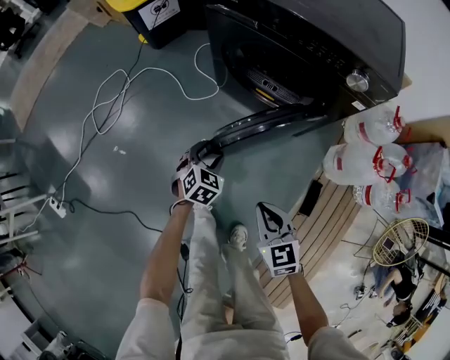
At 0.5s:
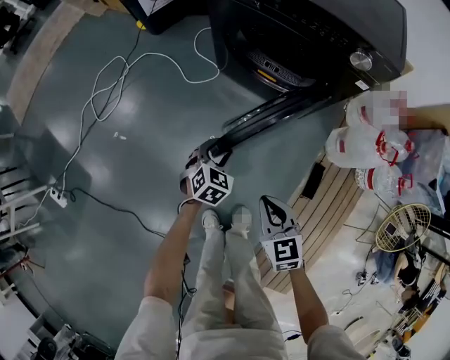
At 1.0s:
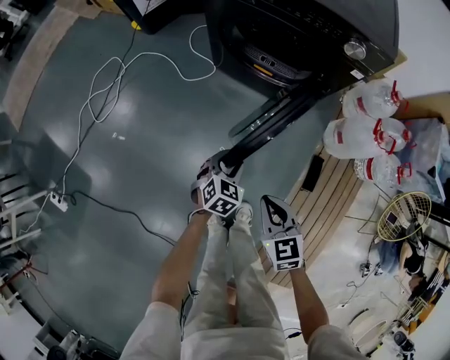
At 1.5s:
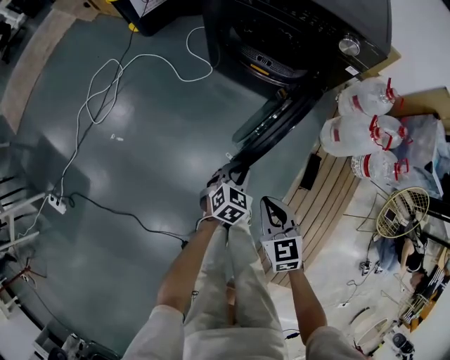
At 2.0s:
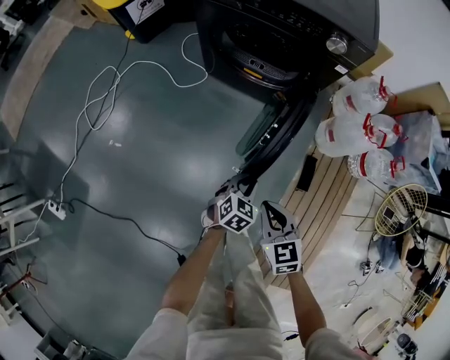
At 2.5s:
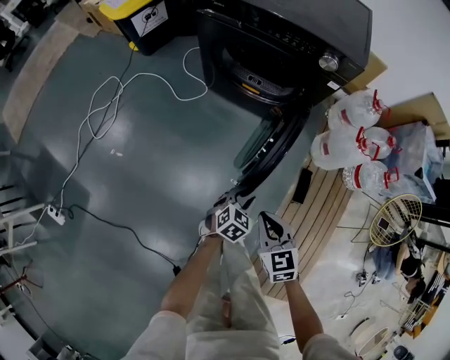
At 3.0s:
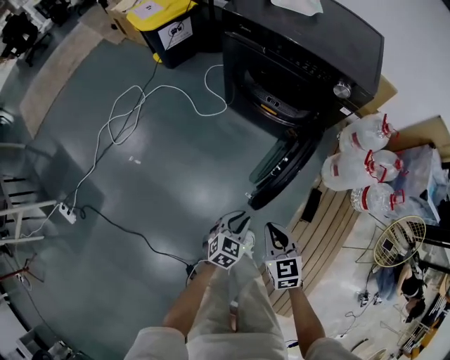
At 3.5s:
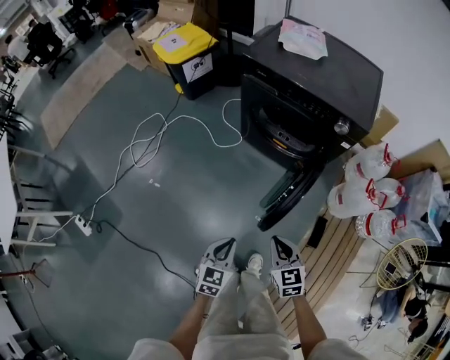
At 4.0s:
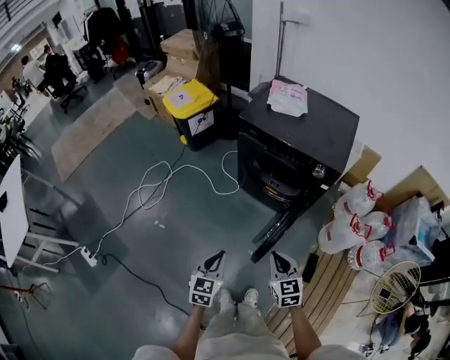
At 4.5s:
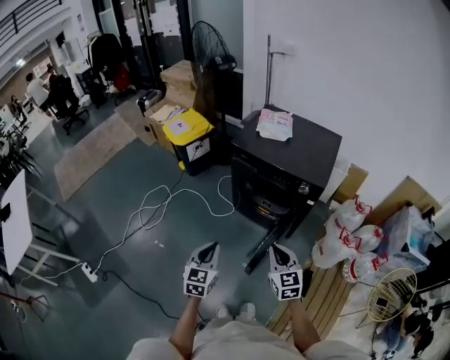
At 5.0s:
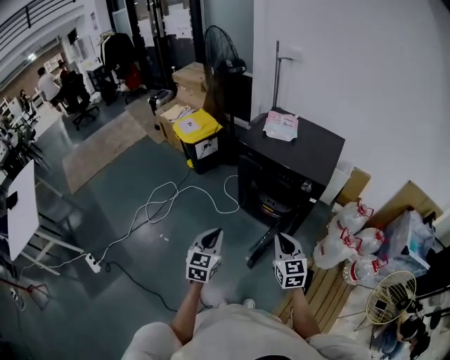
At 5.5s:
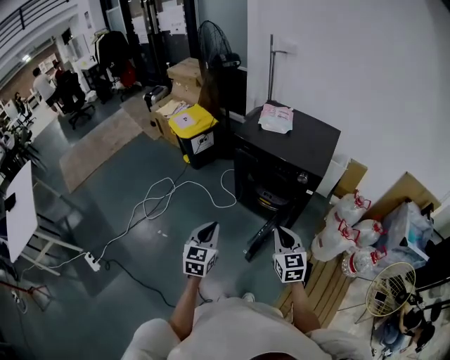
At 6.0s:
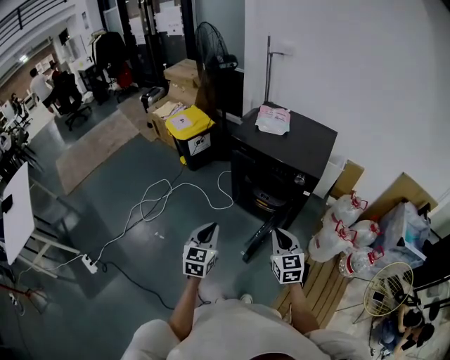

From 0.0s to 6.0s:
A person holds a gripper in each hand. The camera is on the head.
From 0.0s to 2.0s: The right gripper moves backward, approximately 10 cm; the left gripper is displaced backward and to the right by approximately 25 cm, and closes up.
From 2.0s to 4.0s: The right gripper travels upward by about 25 cm. The left gripper is displaced upward and to the left by roughly 40 cm, and changes its angle by approximately 30 degrees.
From 4.0s to 6.0s: The two grippers go some 15 cm upward.

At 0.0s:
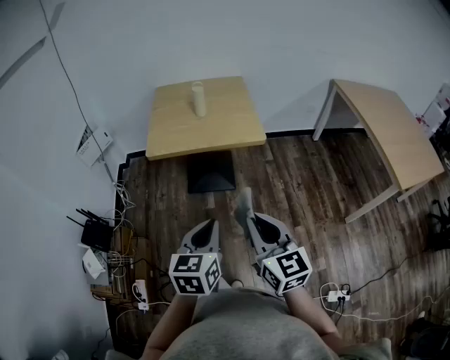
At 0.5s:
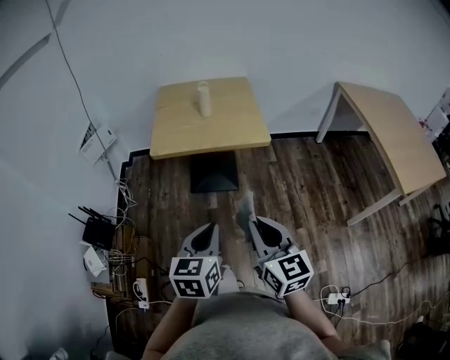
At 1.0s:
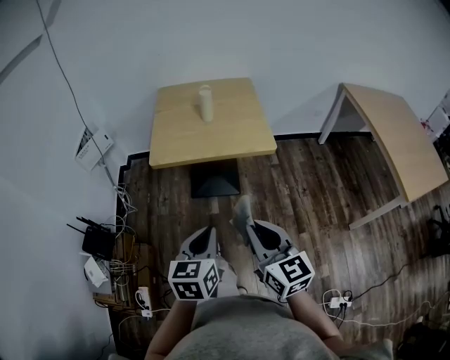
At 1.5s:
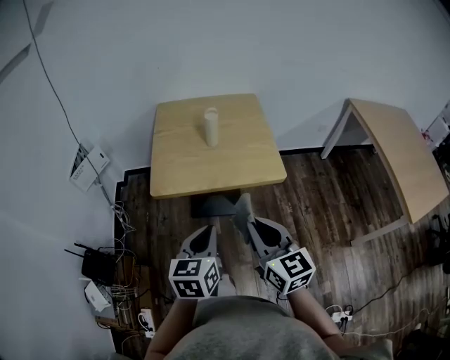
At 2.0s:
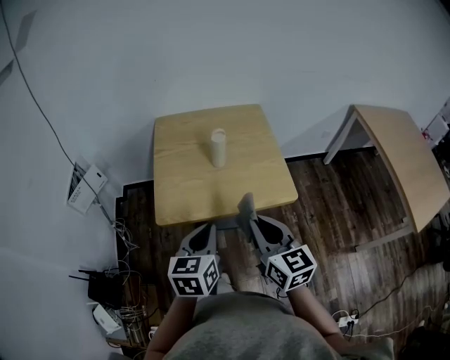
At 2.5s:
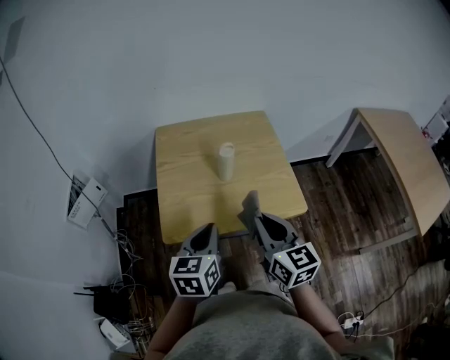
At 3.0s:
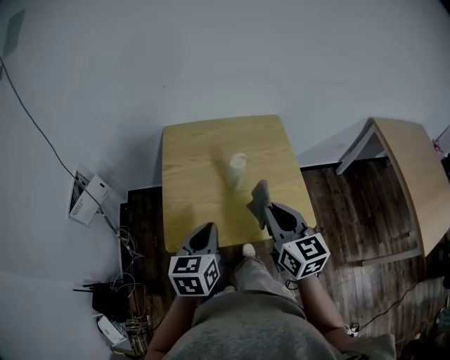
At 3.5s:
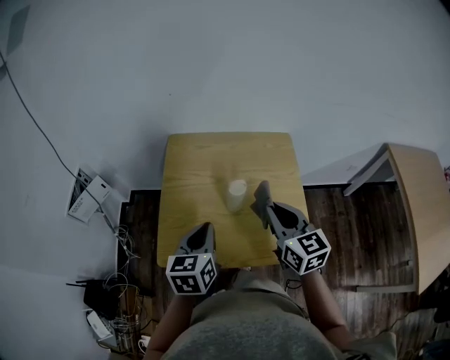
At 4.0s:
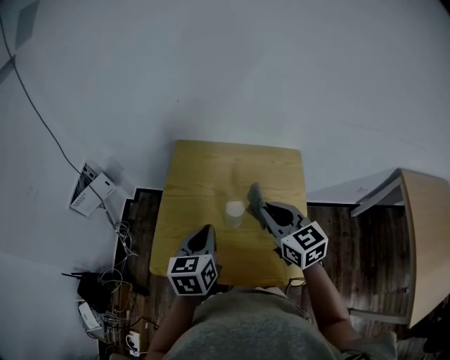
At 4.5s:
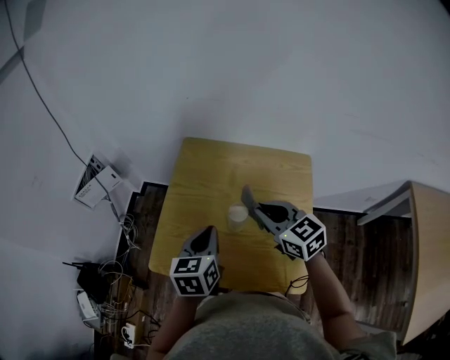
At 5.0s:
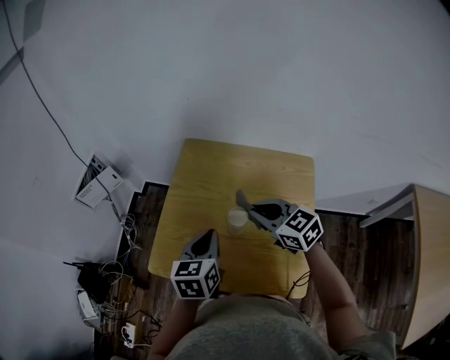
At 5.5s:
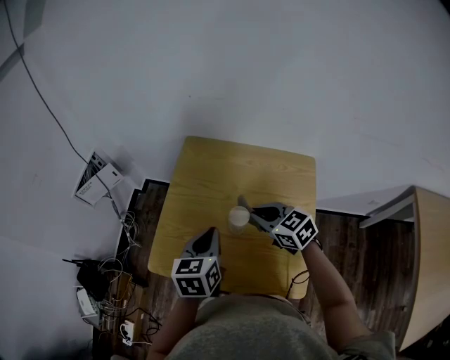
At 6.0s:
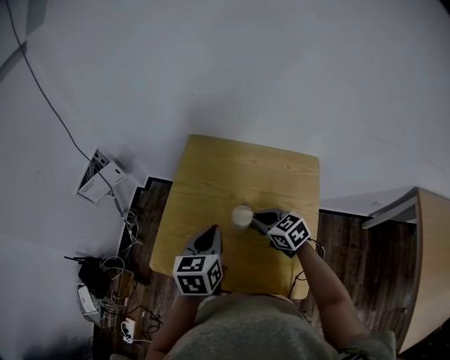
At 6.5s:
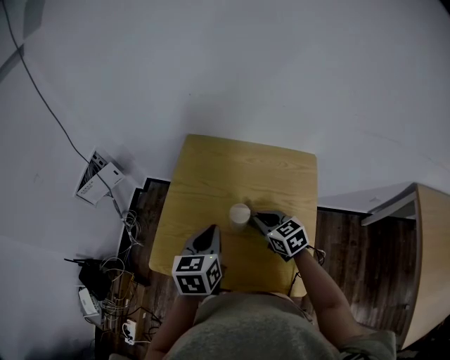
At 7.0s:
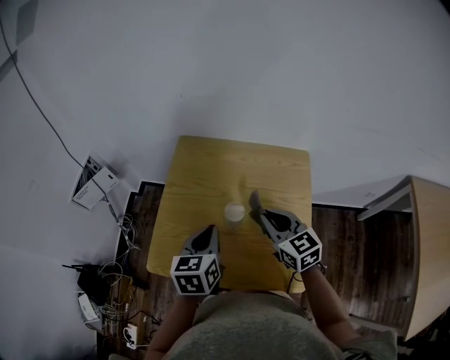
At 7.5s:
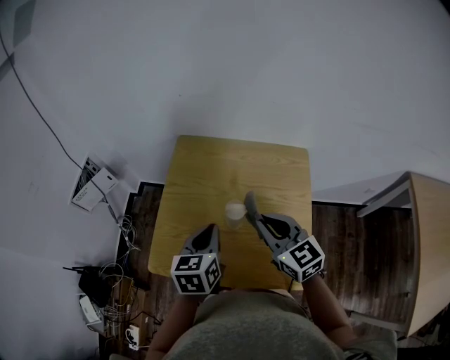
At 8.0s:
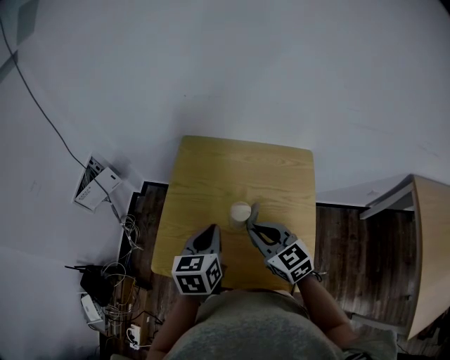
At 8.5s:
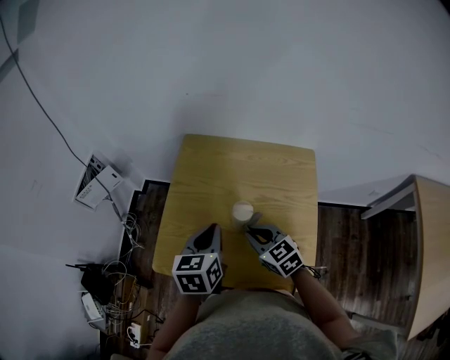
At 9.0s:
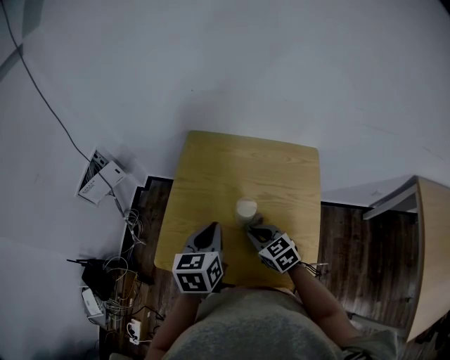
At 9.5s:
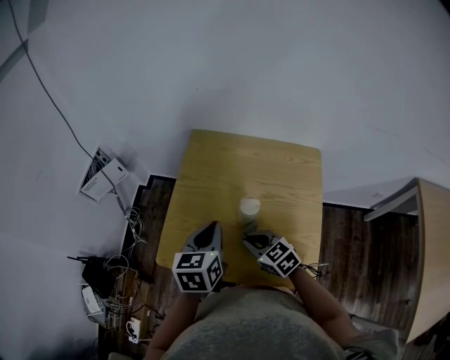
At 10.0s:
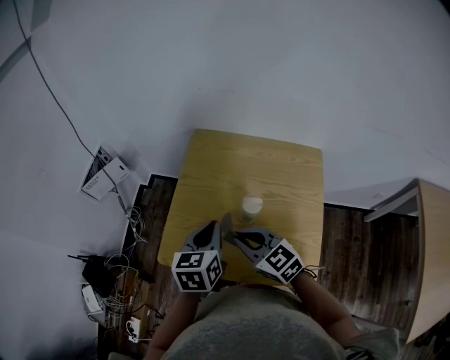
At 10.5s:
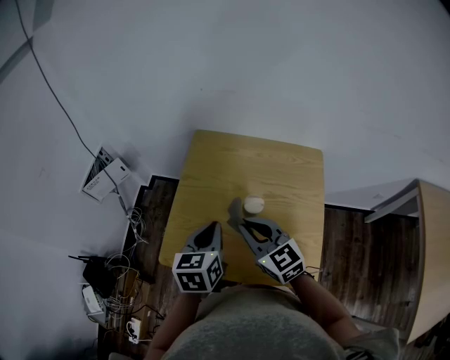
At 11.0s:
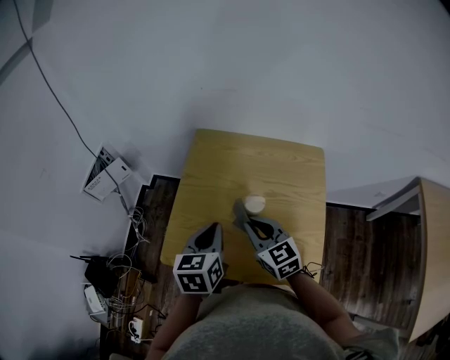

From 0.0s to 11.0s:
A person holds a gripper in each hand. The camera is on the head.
From 0.0s to 2.0s: Both grippers travel together forward, roughly 30 cm.
From 2.0s to 3.5s: The grippers both shift forward by roughly 25 cm.
From 3.5s to 5.5s: The right gripper moves roughly 15 cm, and changes its angle by approximately 40 degrees. Meanwhile the left gripper shifts by roughly 10 cm.
From 5.5s to 7.5s: The right gripper shifts approximately 10 cm upward and backward, and swivels about 20 degrees.
From 7.5s to 9.0s: The right gripper goes about 15 cm downward, and rotates approximately 20 degrees.
From 9.0s to 11.0s: The right gripper moves upward, roughly 10 cm.

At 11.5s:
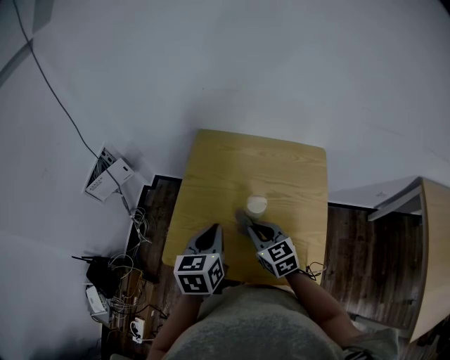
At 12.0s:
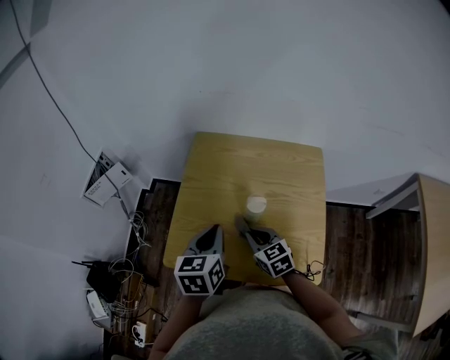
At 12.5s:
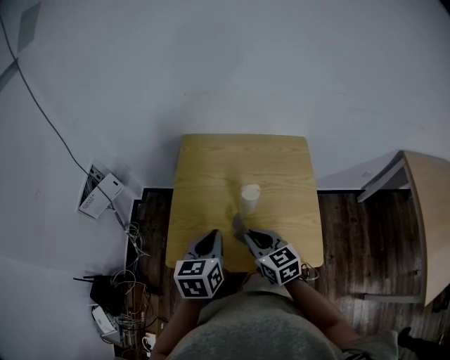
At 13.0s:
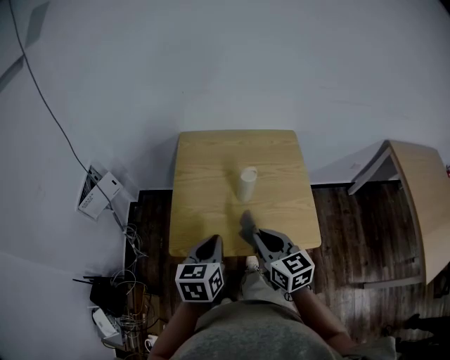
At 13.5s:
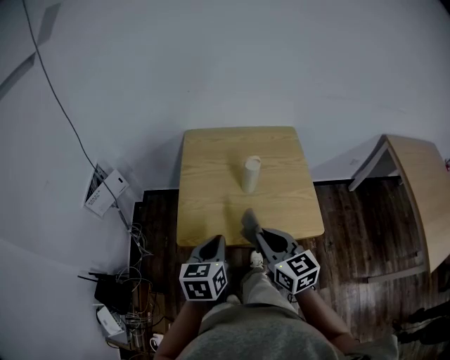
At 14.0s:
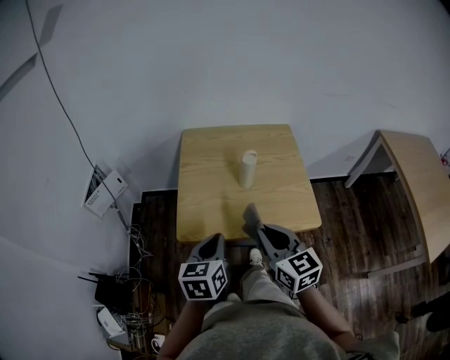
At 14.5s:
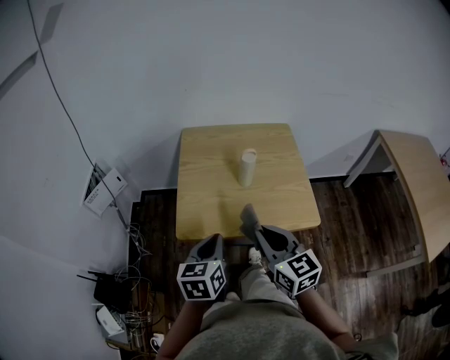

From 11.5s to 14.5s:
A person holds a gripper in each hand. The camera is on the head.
From 11.5s to 13.0s: The right gripper heads backward and upward, covering some 15 cm, and changes its angle by roughly 20 degrees, while the left gripper heads backward, covering about 10 cm.
From 13.0s to 14.5s: The right gripper shifts about 10 cm backward and upward. The left gripper goes roughly 10 cm backward.

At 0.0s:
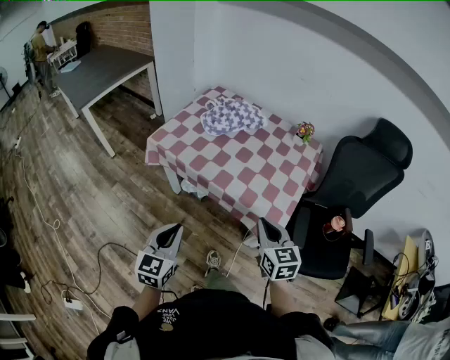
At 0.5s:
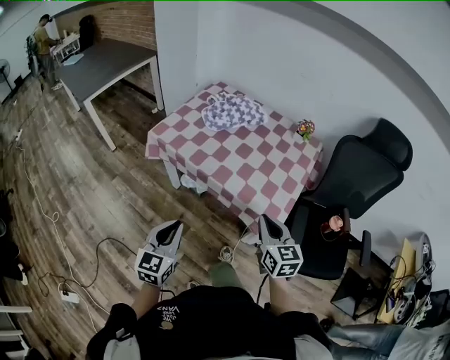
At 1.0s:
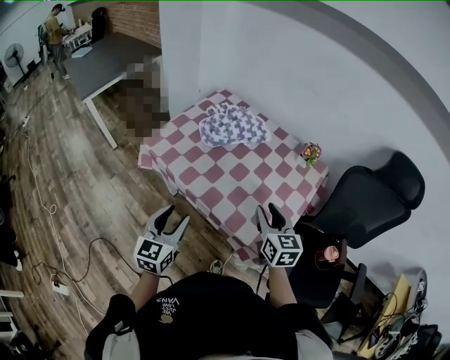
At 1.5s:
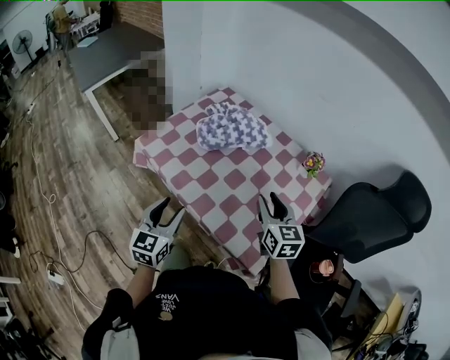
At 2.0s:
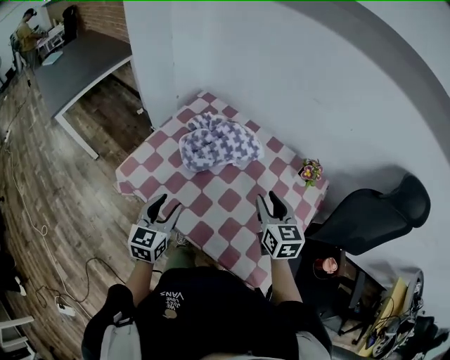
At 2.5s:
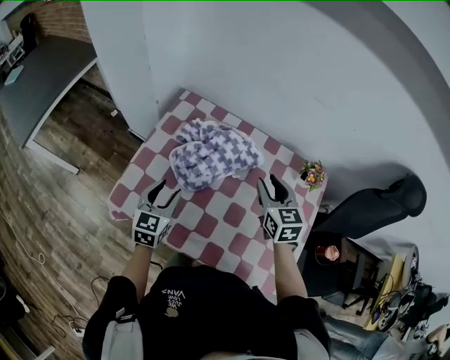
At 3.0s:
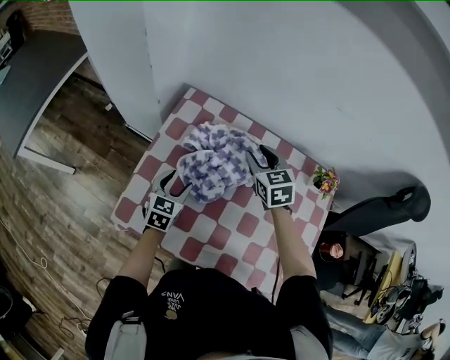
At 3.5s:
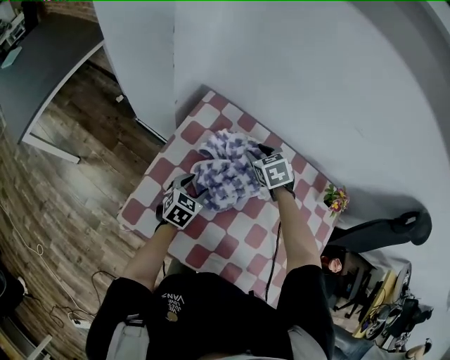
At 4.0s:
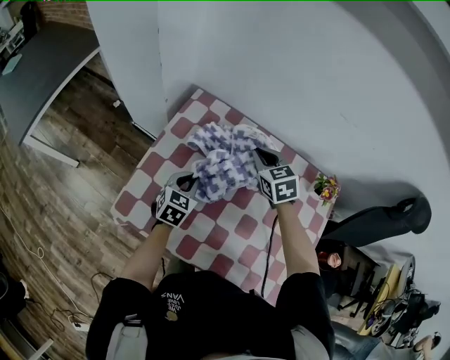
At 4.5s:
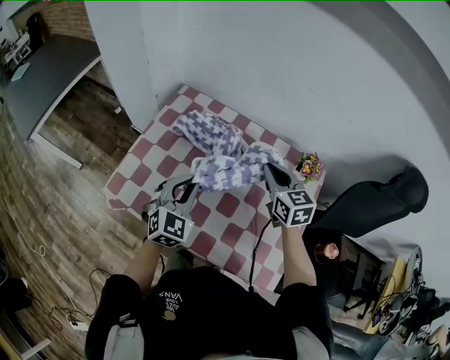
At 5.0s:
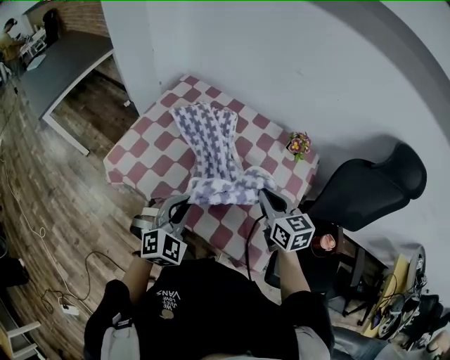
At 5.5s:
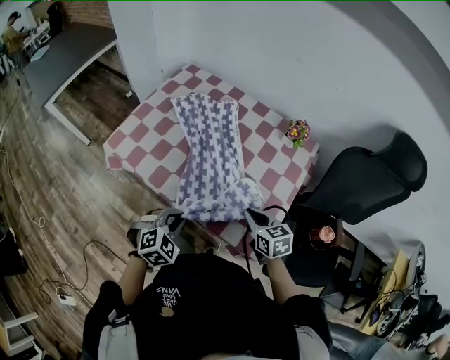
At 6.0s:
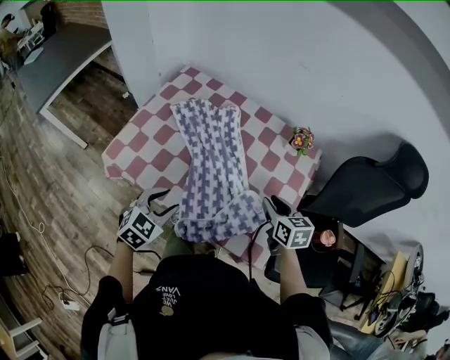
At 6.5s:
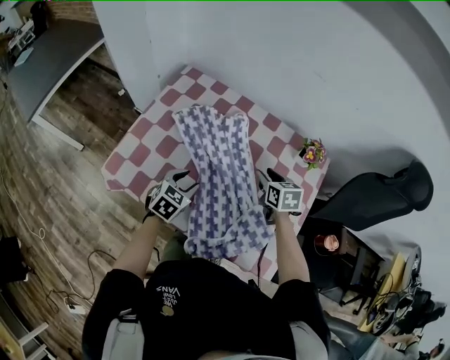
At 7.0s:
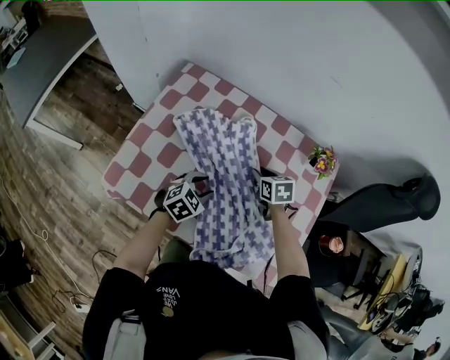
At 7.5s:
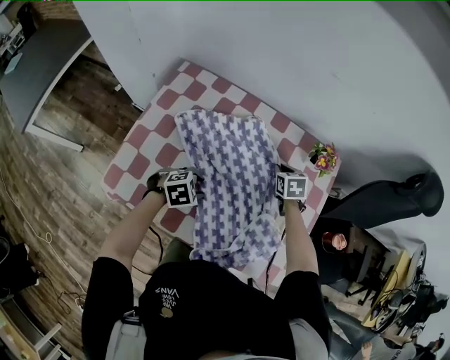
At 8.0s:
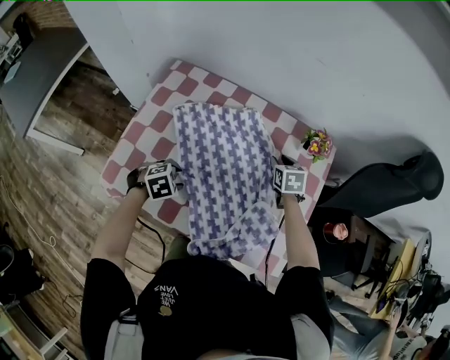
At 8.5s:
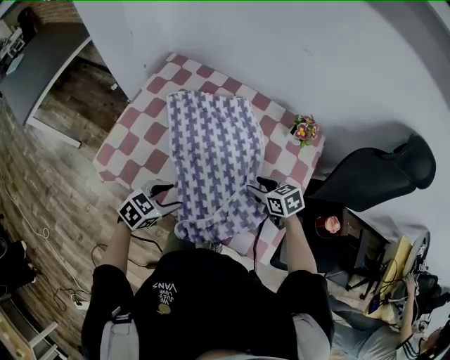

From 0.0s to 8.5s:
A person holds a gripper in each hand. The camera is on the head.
From 0.0s to 2.0s: Both grippers travel together forward, roughly 35 cm. The right gripper opens; the left gripper opens.
From 2.0s to 4.0s: The right gripper heads forward and to the left, covering approximately 30 cm, and swivels about 20 degrees; the left gripper goes some 25 cm forward and downward, changes its angle by some 30 degrees, and closes its fingers.
From 4.0s to 6.5s: The left gripper moves backward and to the right, approximately 15 cm, and opens its fingers. Meanwhile the right gripper is displaced backward, to the right and downward by approximately 25 cm, swivels roughly 20 degrees, and opens.
From 6.5s to 8.5s: The left gripper shifts by about 10 cm; the right gripper shifts by some 10 cm, and rotates some 20 degrees.
